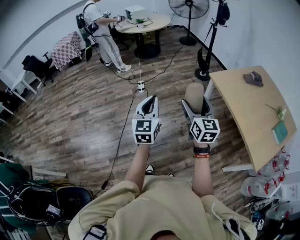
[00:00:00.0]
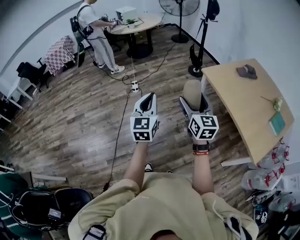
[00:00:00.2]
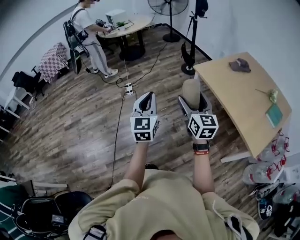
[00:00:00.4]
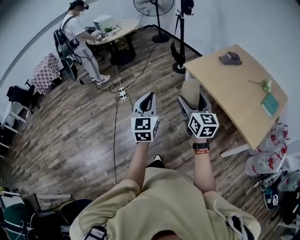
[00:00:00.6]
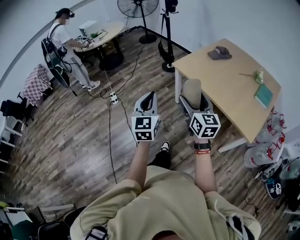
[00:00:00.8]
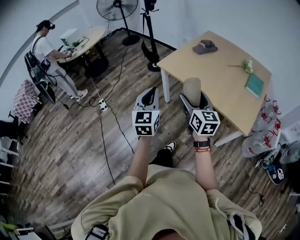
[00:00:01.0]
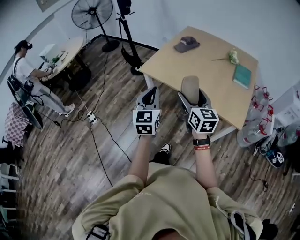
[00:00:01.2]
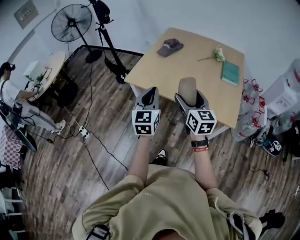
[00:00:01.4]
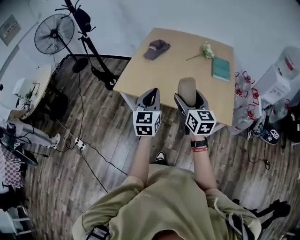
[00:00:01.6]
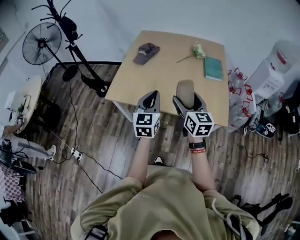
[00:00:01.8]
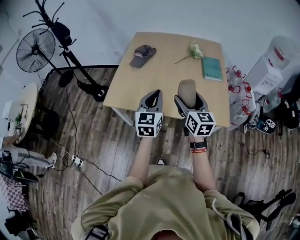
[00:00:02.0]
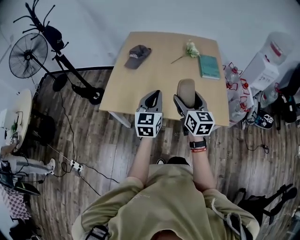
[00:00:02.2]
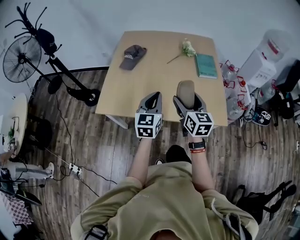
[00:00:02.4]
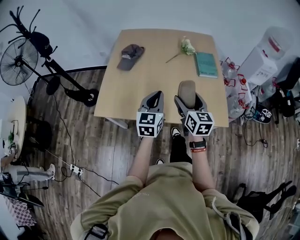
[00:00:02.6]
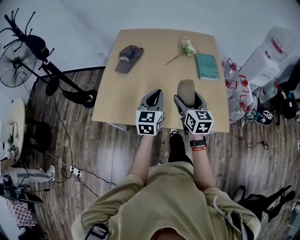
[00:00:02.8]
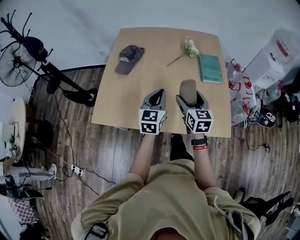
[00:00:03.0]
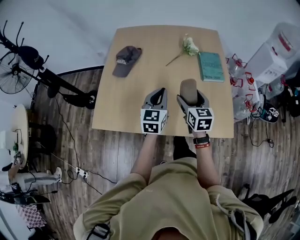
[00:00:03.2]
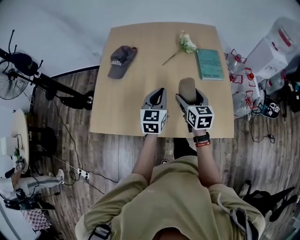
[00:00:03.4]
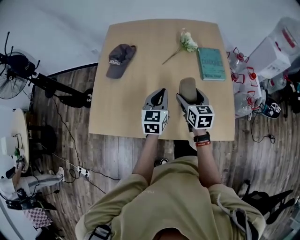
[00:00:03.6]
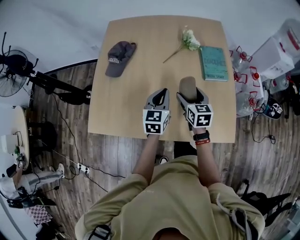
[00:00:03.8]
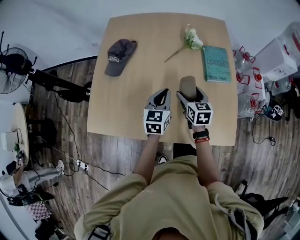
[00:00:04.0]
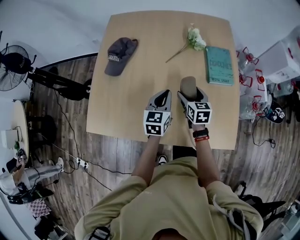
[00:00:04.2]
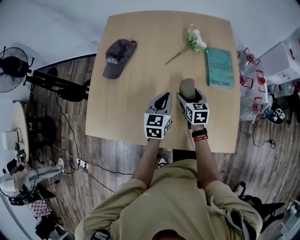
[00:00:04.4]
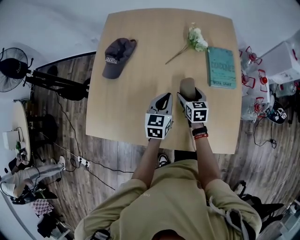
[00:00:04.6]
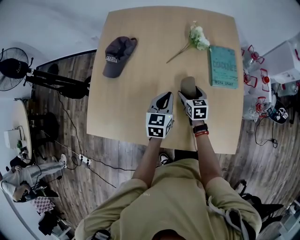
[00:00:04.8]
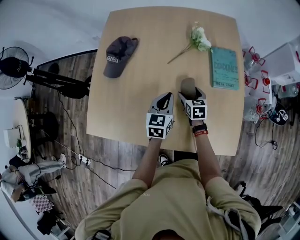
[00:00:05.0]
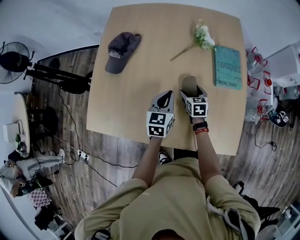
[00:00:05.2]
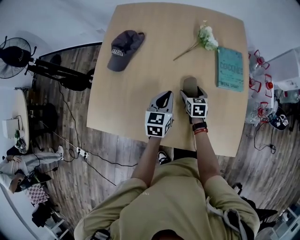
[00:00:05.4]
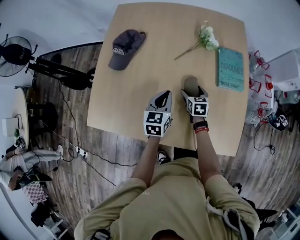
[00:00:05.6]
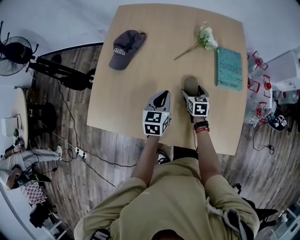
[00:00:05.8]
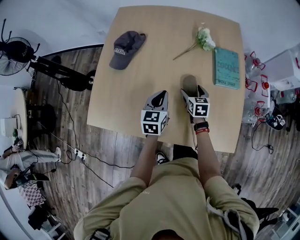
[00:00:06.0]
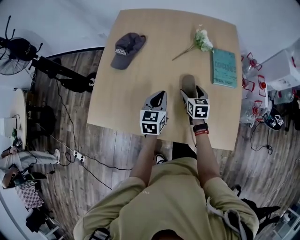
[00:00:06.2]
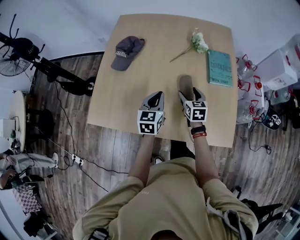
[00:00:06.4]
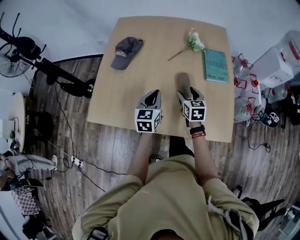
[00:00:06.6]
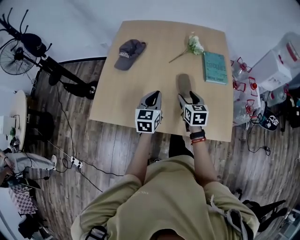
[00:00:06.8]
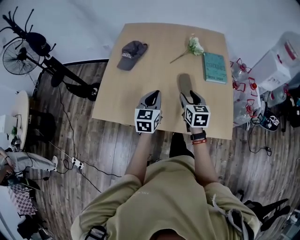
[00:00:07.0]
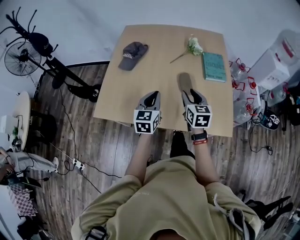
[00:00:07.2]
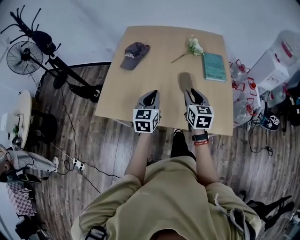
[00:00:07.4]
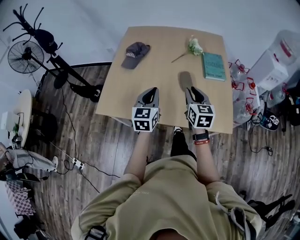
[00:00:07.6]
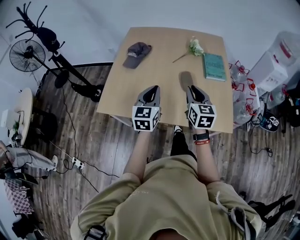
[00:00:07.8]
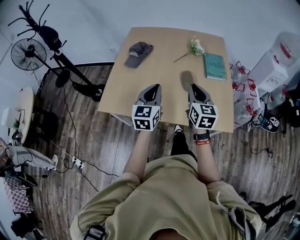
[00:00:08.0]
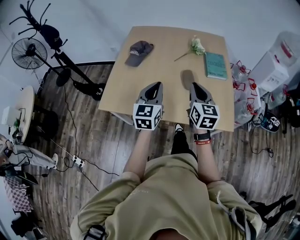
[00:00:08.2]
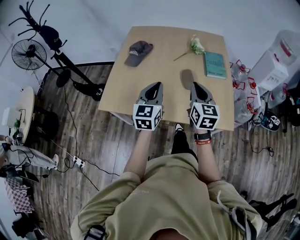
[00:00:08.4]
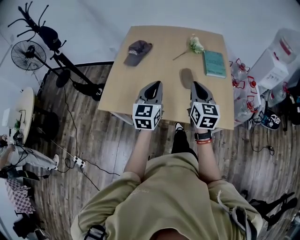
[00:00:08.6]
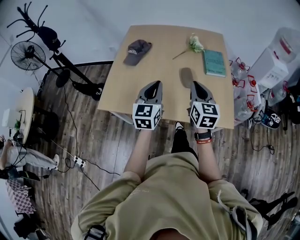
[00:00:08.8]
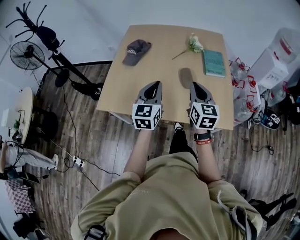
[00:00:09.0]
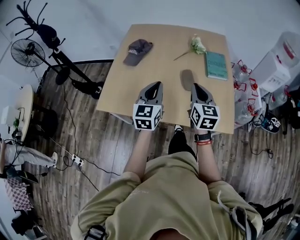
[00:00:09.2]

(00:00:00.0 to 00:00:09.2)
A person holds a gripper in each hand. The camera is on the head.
00:00:00.0 - 00:00:01.6: The pair of grippers is taken roughly 50 cm. The left gripper rotates approximately 50 degrees; the right gripper swivels some 50 degrees.
00:00:01.6 - 00:00:03.0: The two grippers go some 30 cm forward.
00:00:03.0 - 00:00:04.6: The grippers both shift forward and downward by approximately 30 cm.
00:00:04.6 - 00:00:06.2: The left gripper goes some 10 cm to the left and backward. The right gripper goes downward and returns, some 5 cm each way.
00:00:06.2 - 00:00:07.6: The two grippers go approximately 30 cm backward and upward. The right gripper closes up.

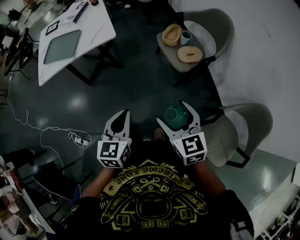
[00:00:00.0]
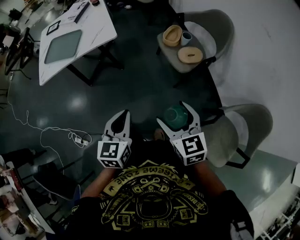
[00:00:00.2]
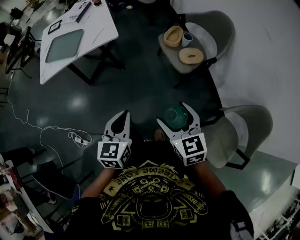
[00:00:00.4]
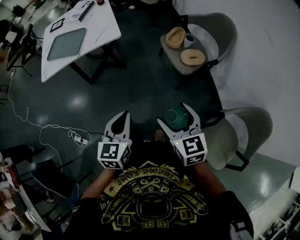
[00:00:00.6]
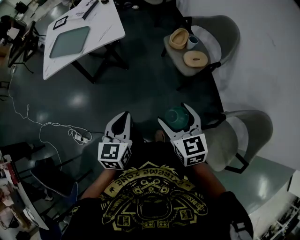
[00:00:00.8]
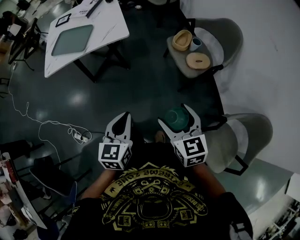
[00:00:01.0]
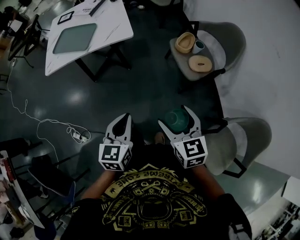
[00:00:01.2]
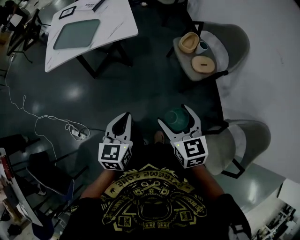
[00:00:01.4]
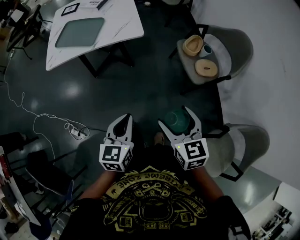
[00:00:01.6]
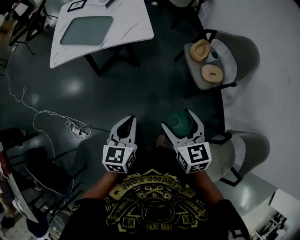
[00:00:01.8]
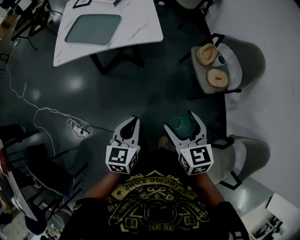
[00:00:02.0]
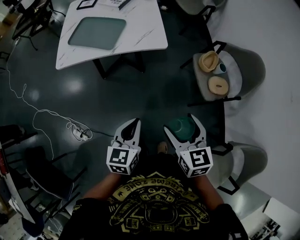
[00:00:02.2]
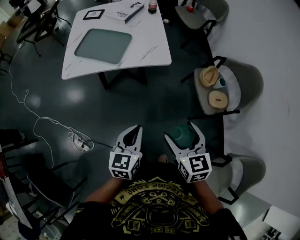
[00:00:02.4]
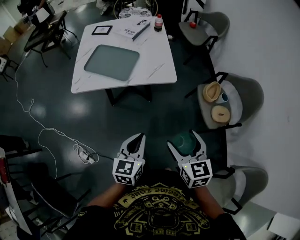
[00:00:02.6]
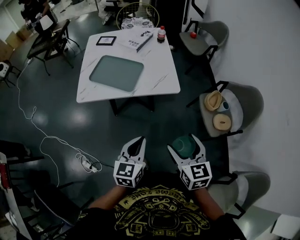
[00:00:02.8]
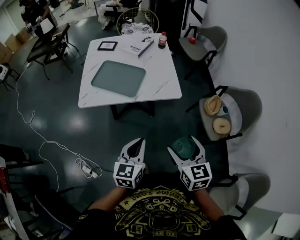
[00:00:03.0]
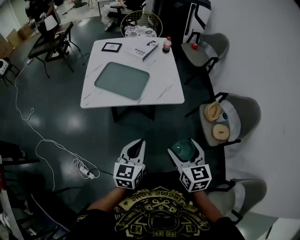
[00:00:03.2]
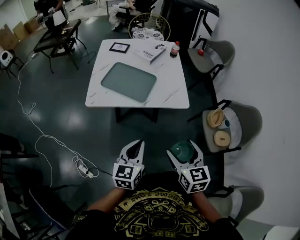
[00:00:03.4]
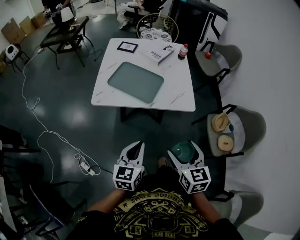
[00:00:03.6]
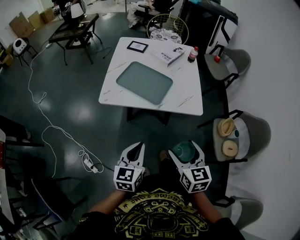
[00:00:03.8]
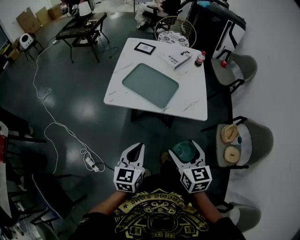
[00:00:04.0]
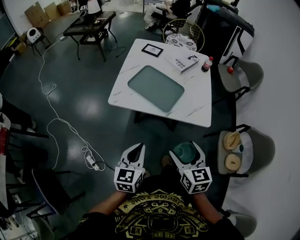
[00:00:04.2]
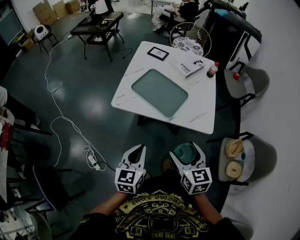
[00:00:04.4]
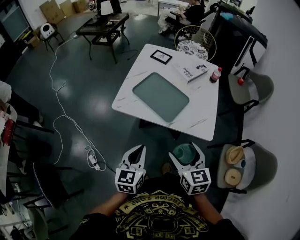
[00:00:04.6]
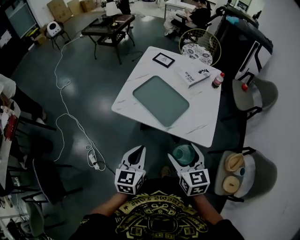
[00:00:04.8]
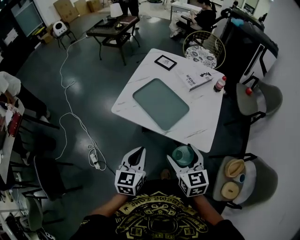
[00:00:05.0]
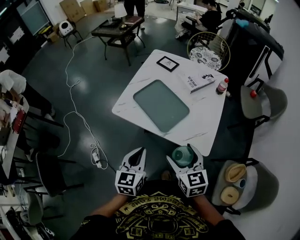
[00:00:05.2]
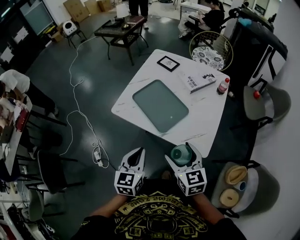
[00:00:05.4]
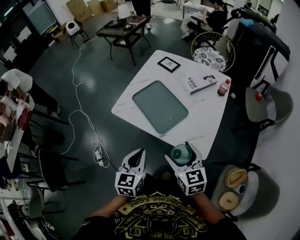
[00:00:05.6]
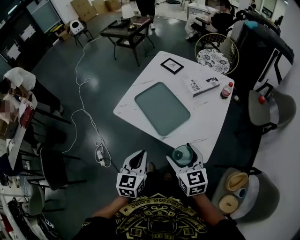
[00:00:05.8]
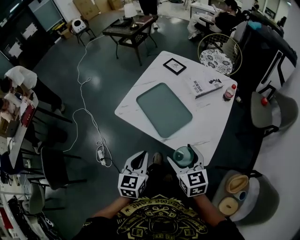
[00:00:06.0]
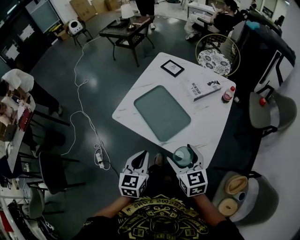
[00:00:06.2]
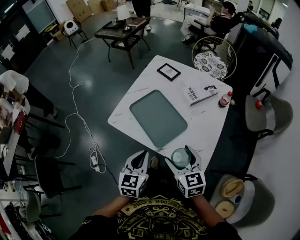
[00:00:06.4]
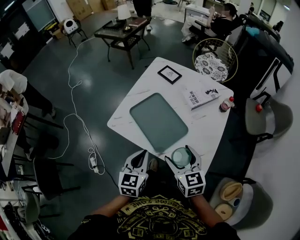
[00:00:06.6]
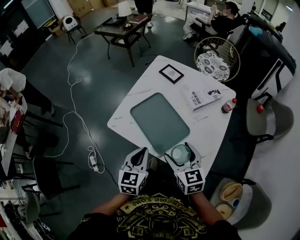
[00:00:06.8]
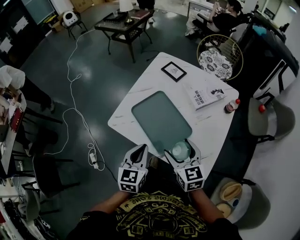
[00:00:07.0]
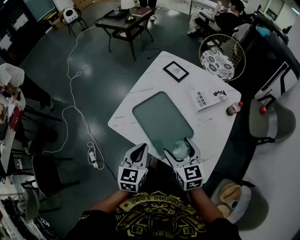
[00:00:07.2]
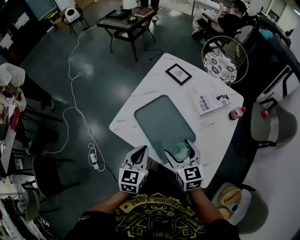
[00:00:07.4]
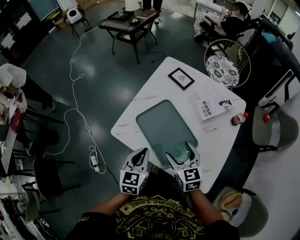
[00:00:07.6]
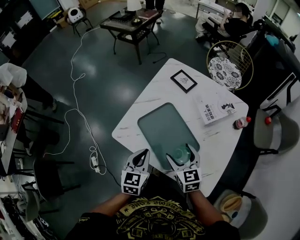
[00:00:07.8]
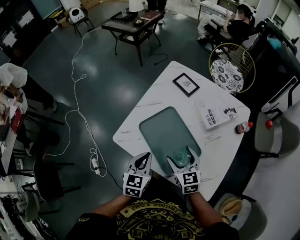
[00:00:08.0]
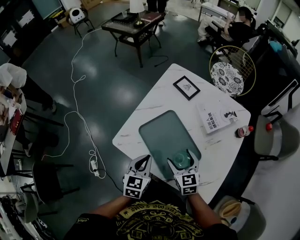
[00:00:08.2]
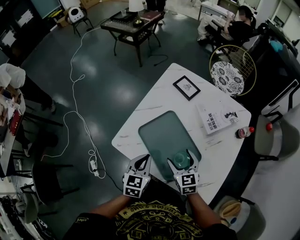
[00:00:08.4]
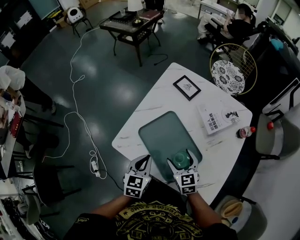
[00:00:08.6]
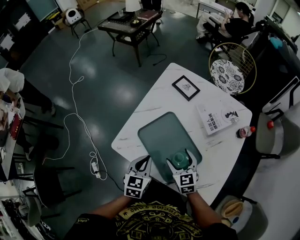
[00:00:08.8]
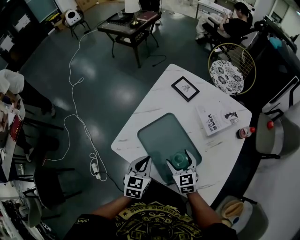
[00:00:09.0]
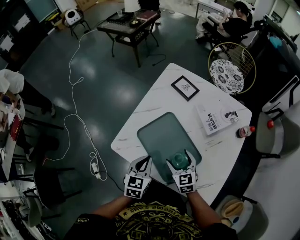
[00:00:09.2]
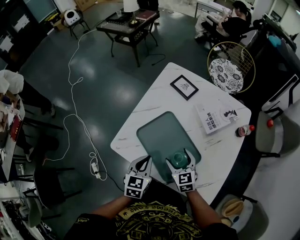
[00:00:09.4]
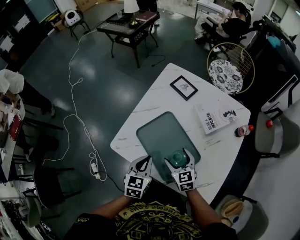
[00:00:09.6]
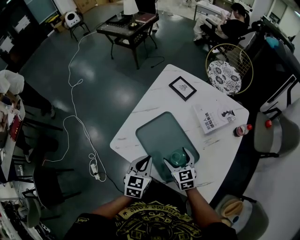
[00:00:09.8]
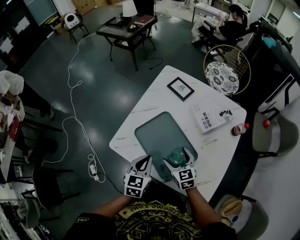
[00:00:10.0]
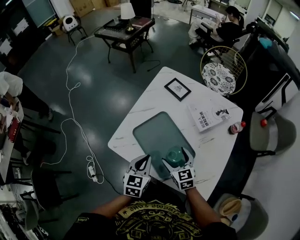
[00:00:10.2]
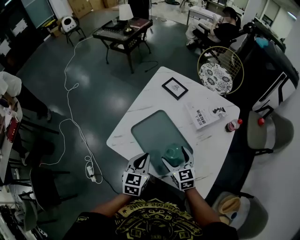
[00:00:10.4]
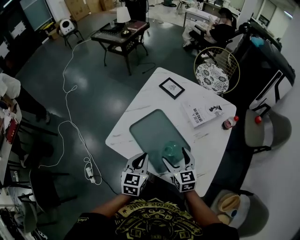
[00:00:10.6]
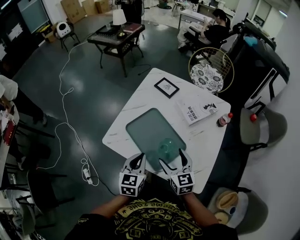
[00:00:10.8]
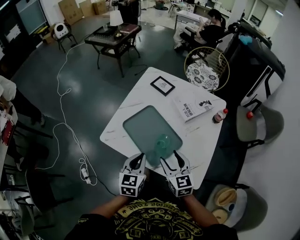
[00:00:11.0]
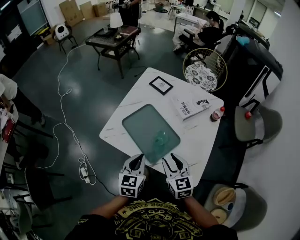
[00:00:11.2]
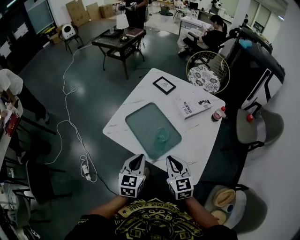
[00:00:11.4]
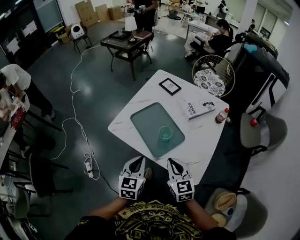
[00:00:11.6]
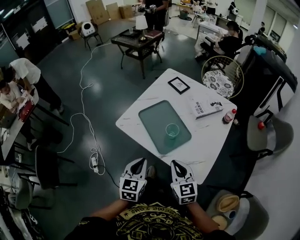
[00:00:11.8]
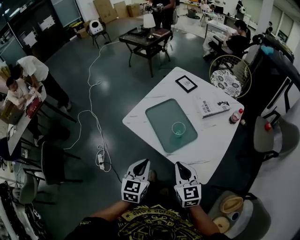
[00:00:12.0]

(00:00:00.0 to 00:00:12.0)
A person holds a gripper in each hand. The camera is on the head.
00:00:00.0 - 00:00:01.6: The grippers both shift to the left by about 10 cm.
00:00:01.6 - 00:00:03.0: Both grippers move to the left and forward, roughly 20 cm.
00:00:03.0 - 00:00:04.4: The right gripper goes about 15 cm forward and to the left. The left gripper is displaced to the left and forward by roughly 15 cm, and turns by roughly 20 degrees.
00:00:04.4 - 00:00:06.0: The right gripper is displaced forward and to the right by some 15 cm, and rotates approximately 20 degrees. Meanwhile the left gripper heads to the right and forward, covering roughly 15 cm.
00:00:06.0 - 00:00:07.6: Both grippers move forward, about 20 cm.
00:00:07.6 - 00:00:09.0: The grippers both shift downward and forward by roughly 10 cm.
00:00:09.0 - 00:00:10.4: The left gripper moves approximately 5 cm. The right gripper shifts by roughly 5 cm.
00:00:10.4 - 00:00:12.0: The right gripper is displaced backward and upward by roughly 25 cm, and closes; the left gripper moves backward, roughly 20 cm.

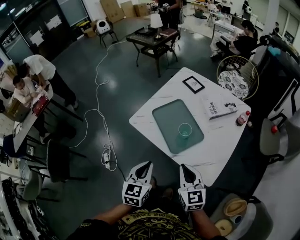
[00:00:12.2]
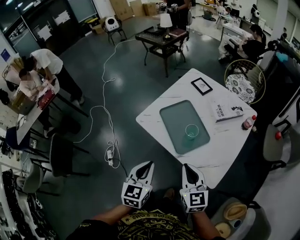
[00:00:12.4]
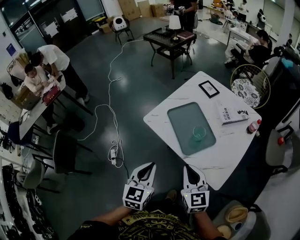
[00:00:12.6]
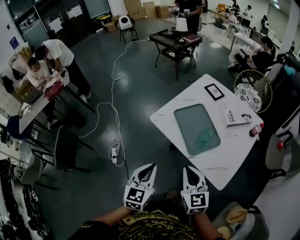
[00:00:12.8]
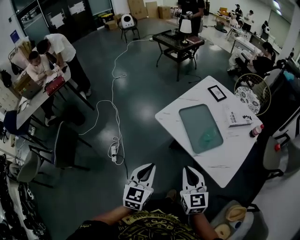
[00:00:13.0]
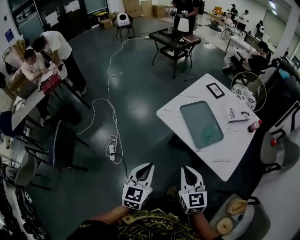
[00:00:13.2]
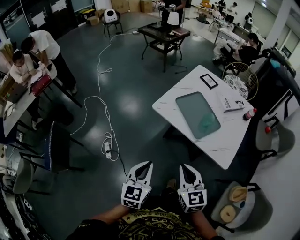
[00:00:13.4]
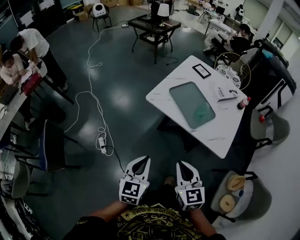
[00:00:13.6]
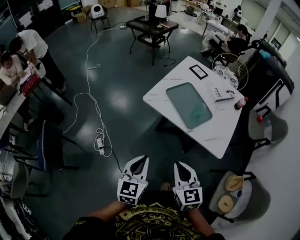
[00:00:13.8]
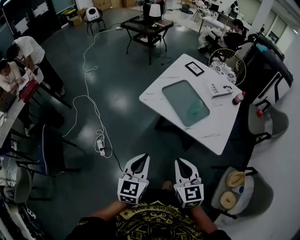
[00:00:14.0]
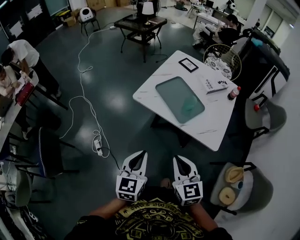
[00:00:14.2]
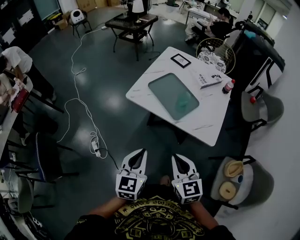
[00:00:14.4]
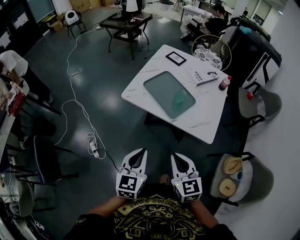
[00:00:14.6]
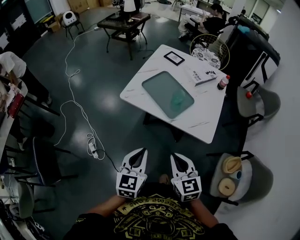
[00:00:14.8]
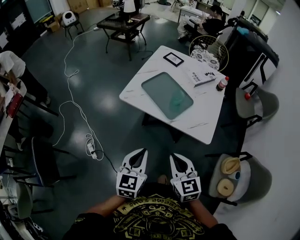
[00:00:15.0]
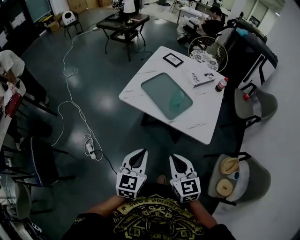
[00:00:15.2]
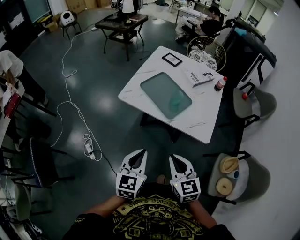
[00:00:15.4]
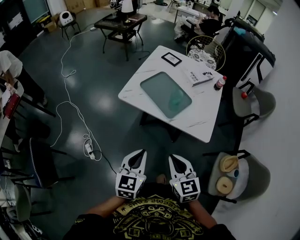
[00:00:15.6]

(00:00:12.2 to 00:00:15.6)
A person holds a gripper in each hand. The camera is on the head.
00:00:12.2 - 00:00:13.8: Both grippers travel together to the left and backward, some 25 cm.
00:00:13.8 - 00:00:15.6: The grippers both shift to the right by about 5 cm.
